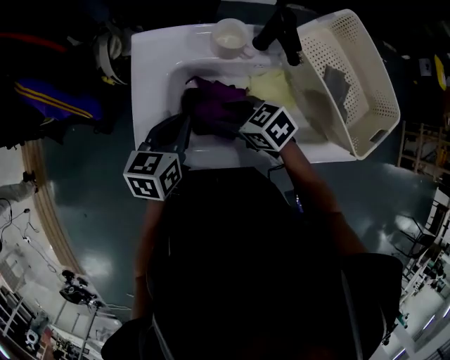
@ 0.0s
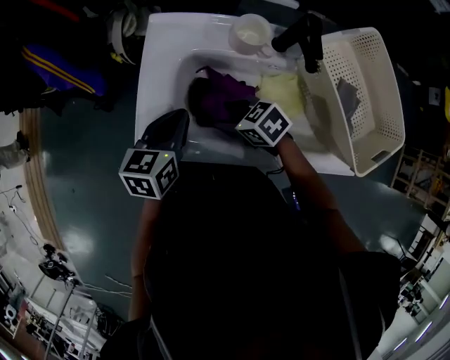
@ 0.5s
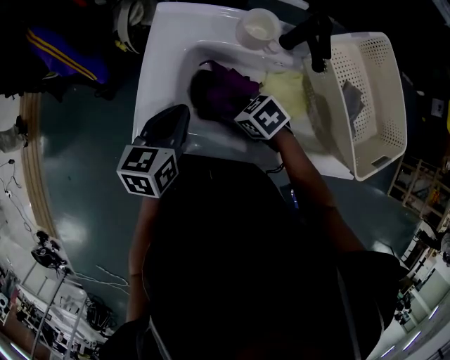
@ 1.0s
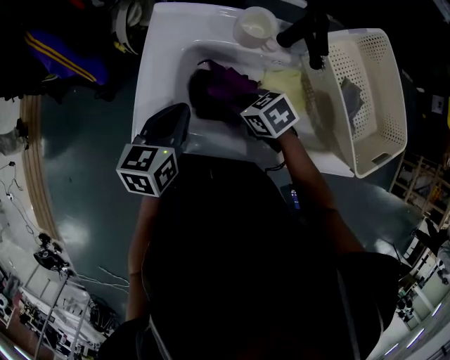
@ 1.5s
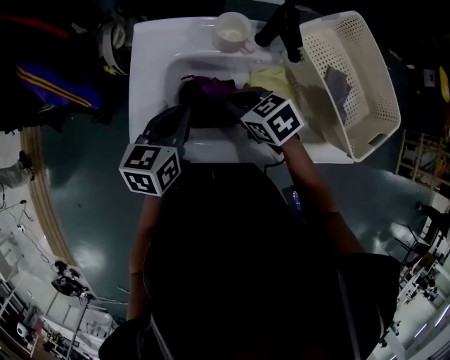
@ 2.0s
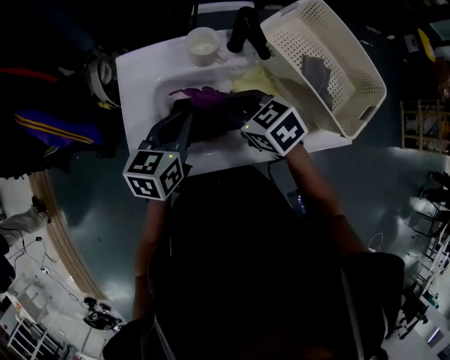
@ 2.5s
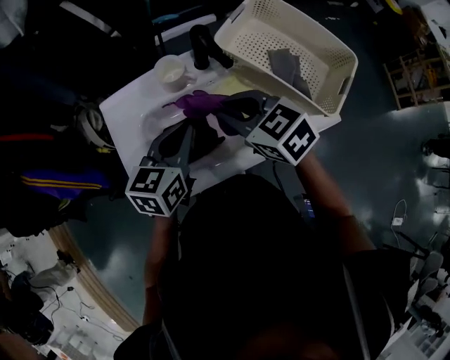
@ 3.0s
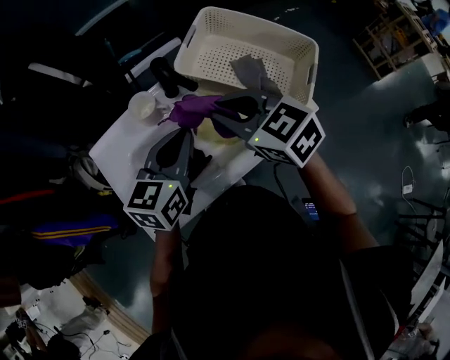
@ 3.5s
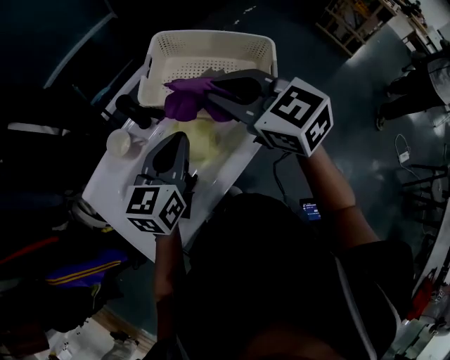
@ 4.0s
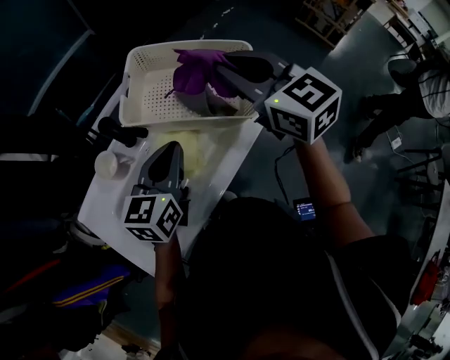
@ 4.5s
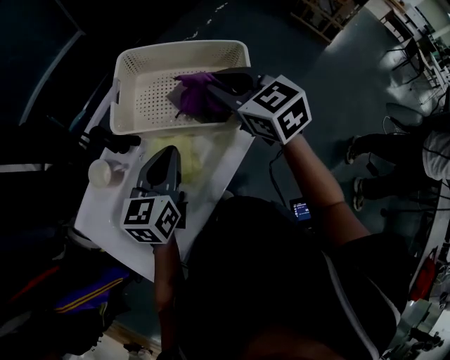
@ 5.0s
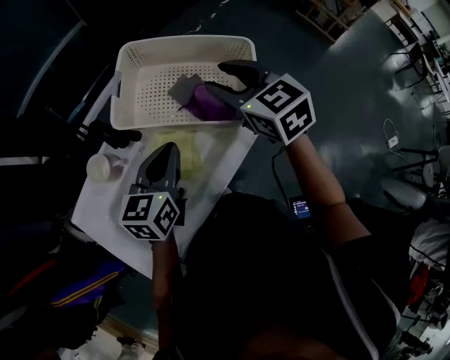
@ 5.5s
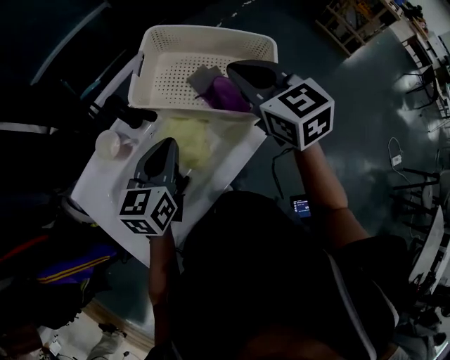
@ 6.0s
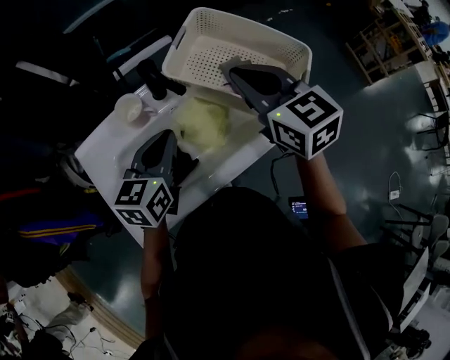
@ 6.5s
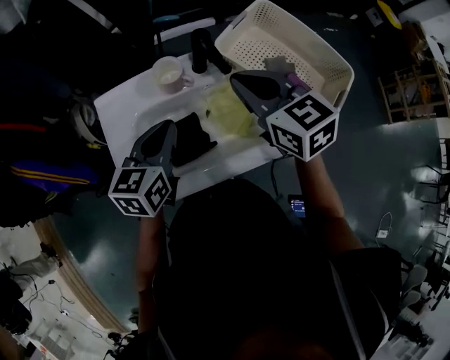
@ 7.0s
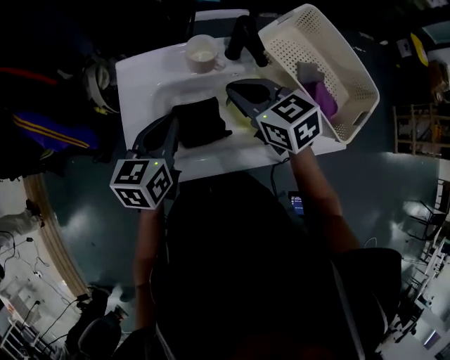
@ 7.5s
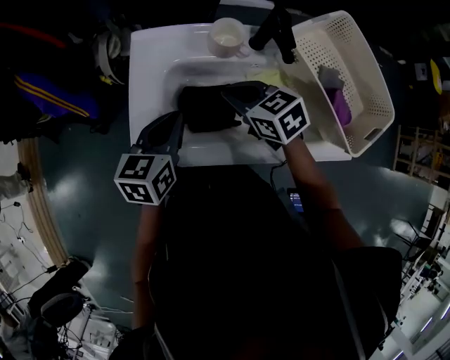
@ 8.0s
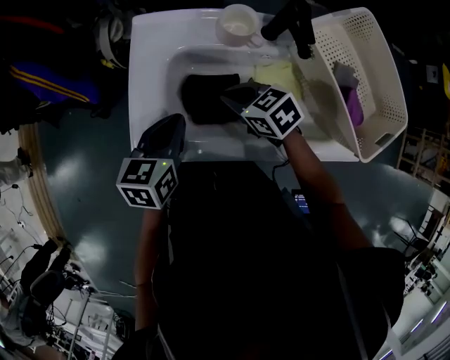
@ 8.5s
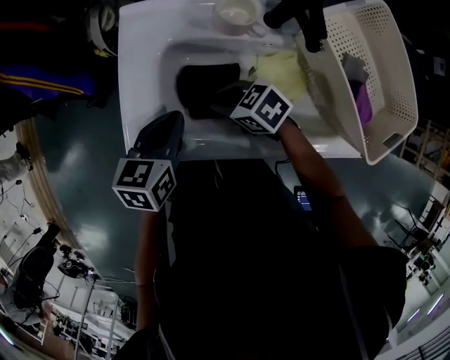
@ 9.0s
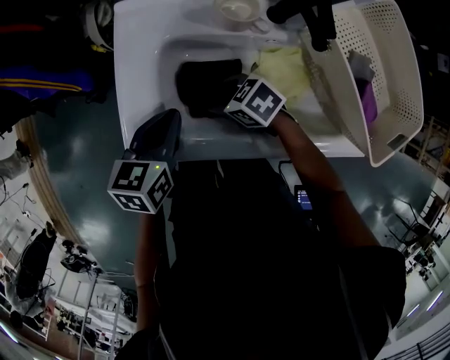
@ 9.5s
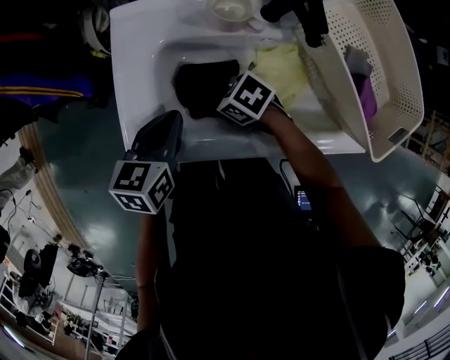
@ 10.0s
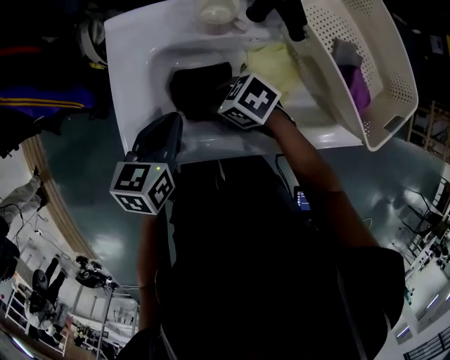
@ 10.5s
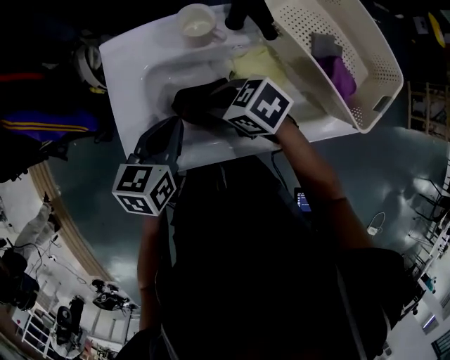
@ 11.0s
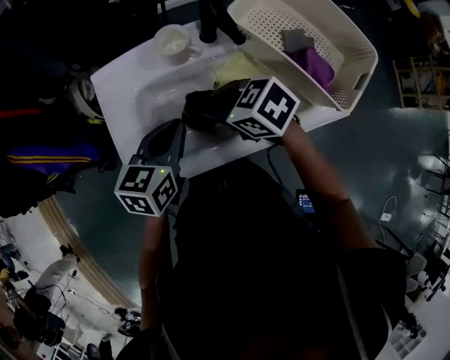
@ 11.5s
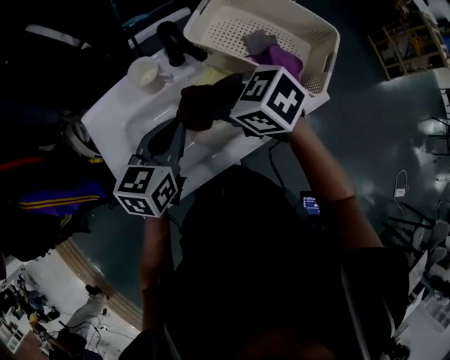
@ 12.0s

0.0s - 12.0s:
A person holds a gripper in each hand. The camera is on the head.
0.0s - 2.0s: The right gripper travels downward and back again, roughly 5 cm each way, and closes up.
2.0s - 4.0s: The left gripper changes place by roughly 25 cm, and rotates approximately 50 degrees; the right gripper moves upward, about 25 cm, and swivels approximately 50 degrees.
4.0s - 6.0s: The right gripper is displaced to the right and forward by about 10 cm, and opens and closes again.
6.0s - 8.0s: The right gripper moves some 35 cm, and rotates approximately 60 degrees. Meanwhile the left gripper moves some 25 cm, and rotates roughly 40 degrees.
8.0s - 10.0s: The right gripper is displaced downward by about 15 cm, rotates approximately 30 degrees, and opens, then closes again. Meanwhile the left gripper moves downward, about 5 cm.
10.0s - 12.0s: The right gripper travels upward by approximately 25 cm, and rotates roughly 40 degrees; the left gripper ends up about 15 cm from where it was, and turns by some 30 degrees.

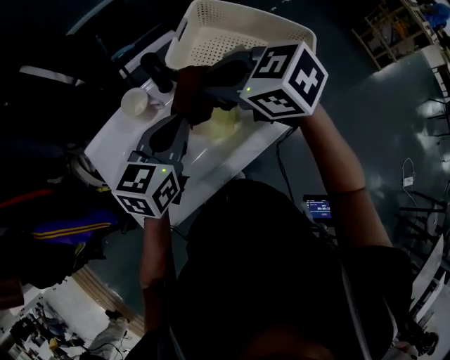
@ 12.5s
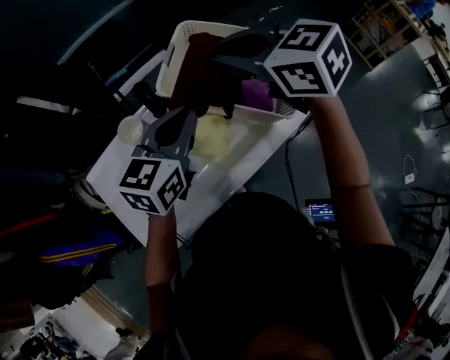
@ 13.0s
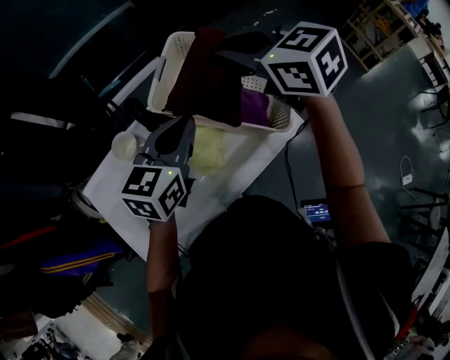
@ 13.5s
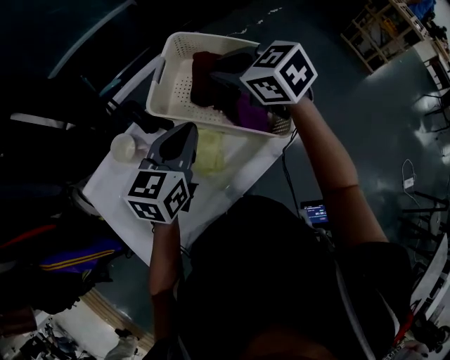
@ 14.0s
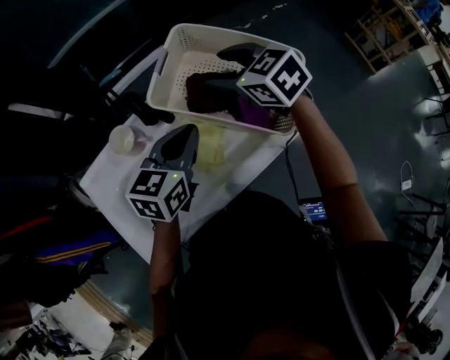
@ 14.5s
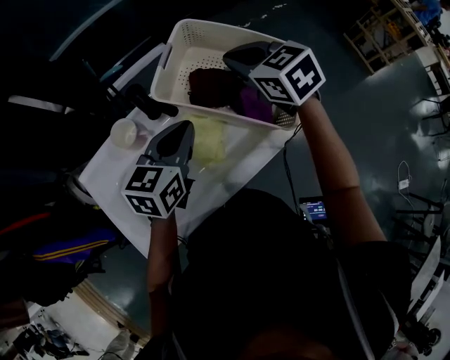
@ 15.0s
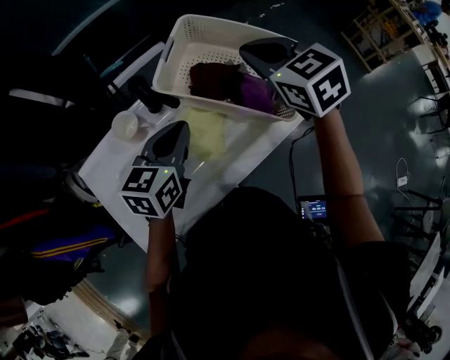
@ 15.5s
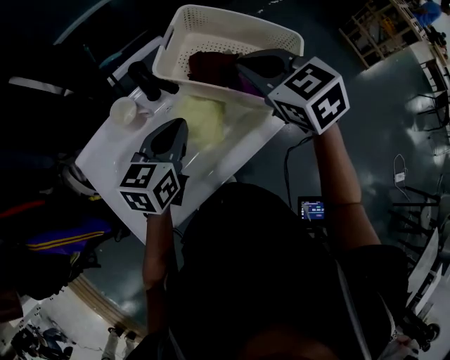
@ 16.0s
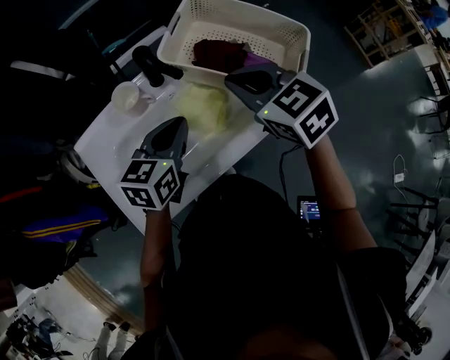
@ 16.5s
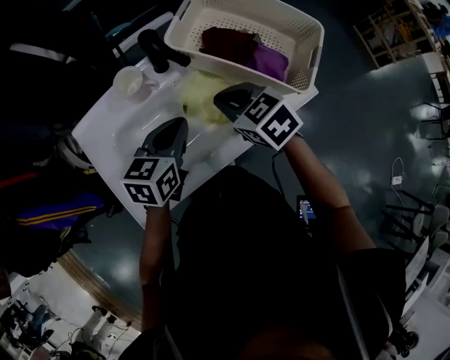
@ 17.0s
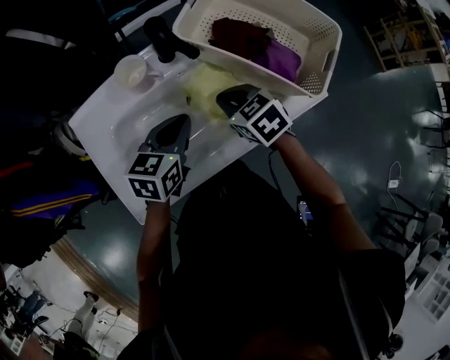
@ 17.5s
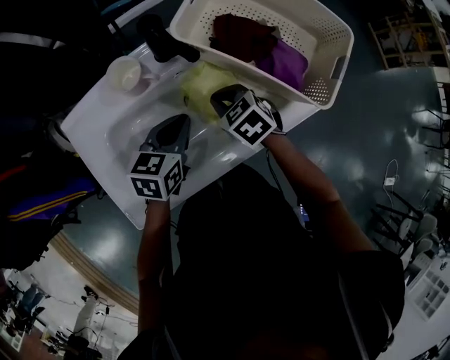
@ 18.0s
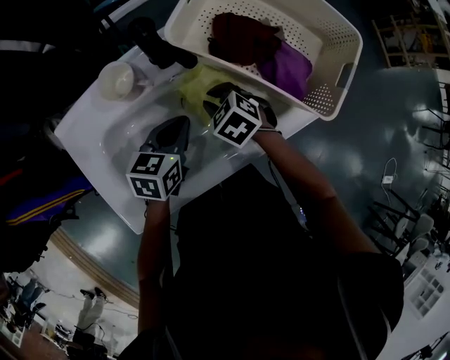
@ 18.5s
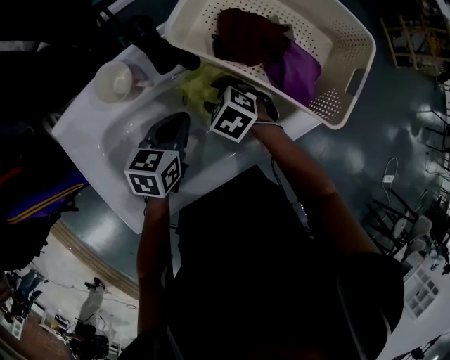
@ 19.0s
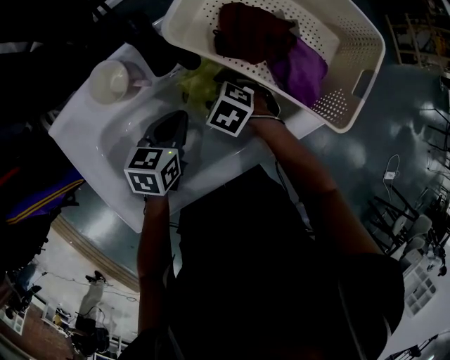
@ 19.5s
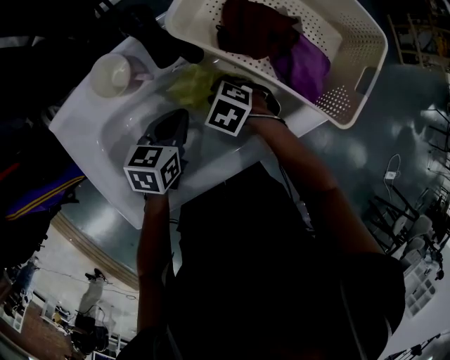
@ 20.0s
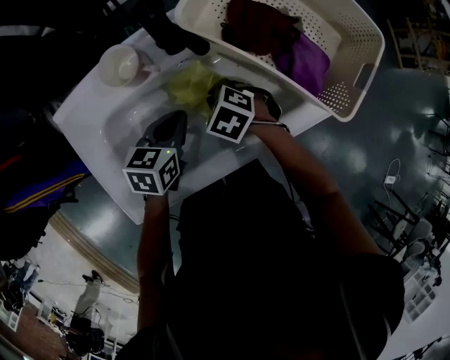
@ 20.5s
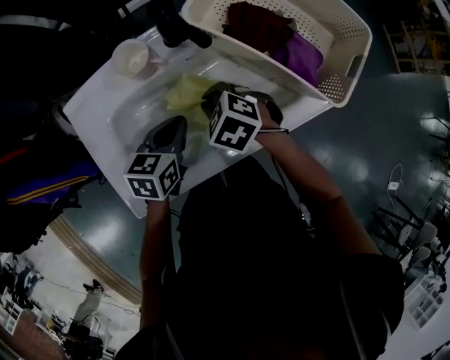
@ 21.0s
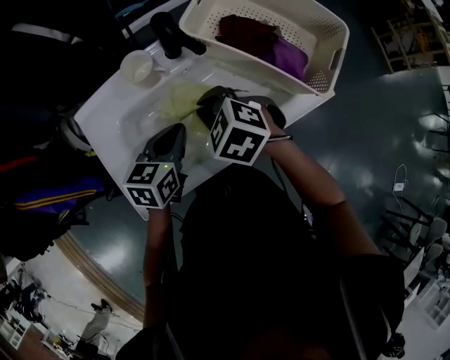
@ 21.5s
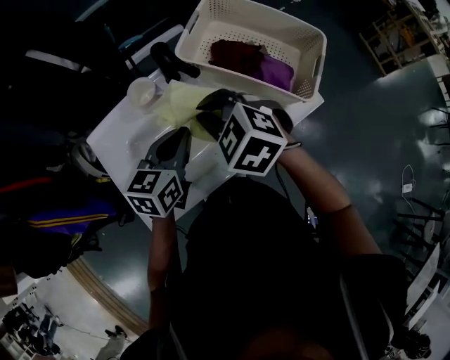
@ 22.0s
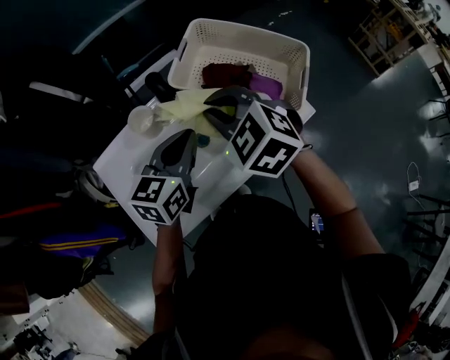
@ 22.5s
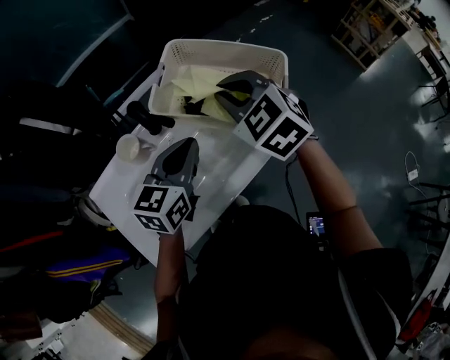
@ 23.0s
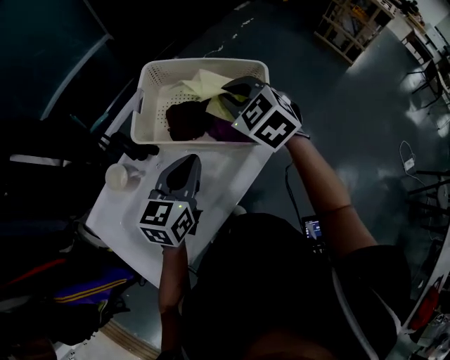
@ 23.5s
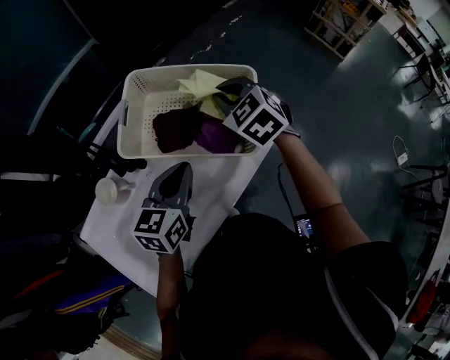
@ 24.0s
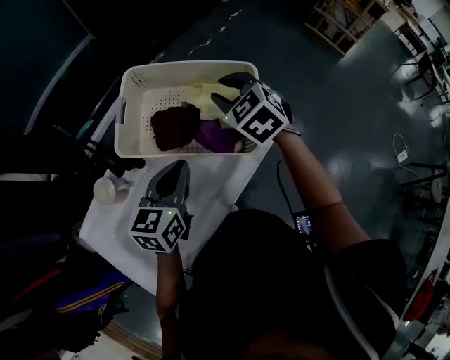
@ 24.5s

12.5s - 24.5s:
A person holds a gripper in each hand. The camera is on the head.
12.5s - 14.5s: The right gripper shifts some 15 cm forward and to the right, and opens. Meanwhile the left gripper travels to the right and forward by about 10 cm.
14.5s - 16.5s: The left gripper shifts roughly 10 cm backward and to the left. The right gripper is displaced backward by approximately 15 cm, and closes its fingers.
16.5s - 18.5s: The left gripper heads downward, covering approximately 15 cm. Meanwhile the right gripper goes some 25 cm downward, and turns by roughly 30 degrees.
18.5s - 20.5s: The right gripper opens, then closes once more.
20.5s - 22.5s: Both grippers move upward, approximately 25 cm. The right gripper angles its fingers upward, by approximately 30 degrees. Meanwhile the left gripper rotates some 30 degrees.
22.5s - 24.5s: The left gripper heads to the right and forward, covering roughly 15 cm. Meanwhile the right gripper shifts approximately 25 cm to the right and forward, swivels some 30 degrees, and opens up.

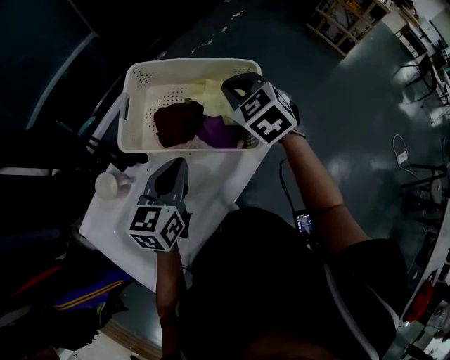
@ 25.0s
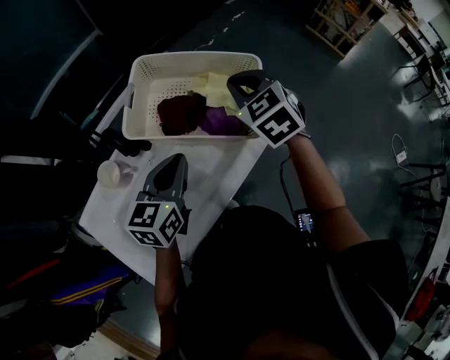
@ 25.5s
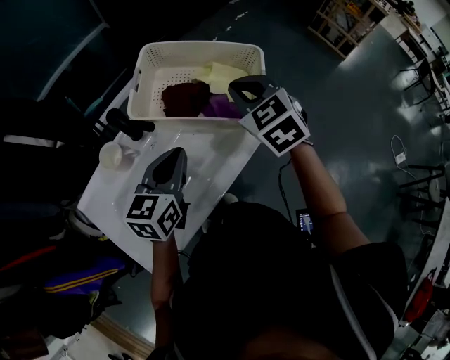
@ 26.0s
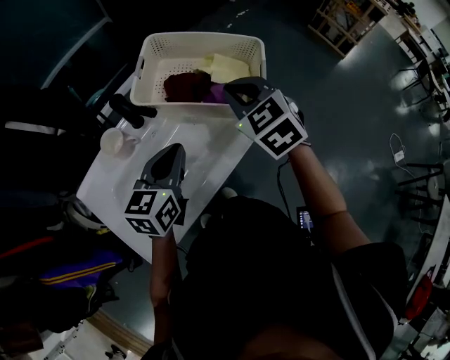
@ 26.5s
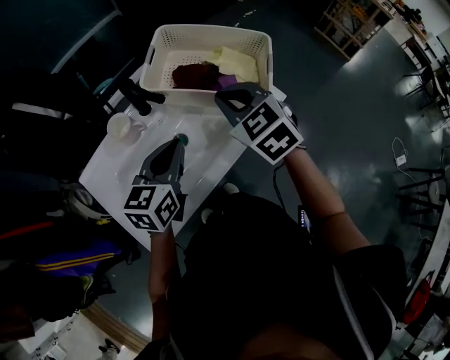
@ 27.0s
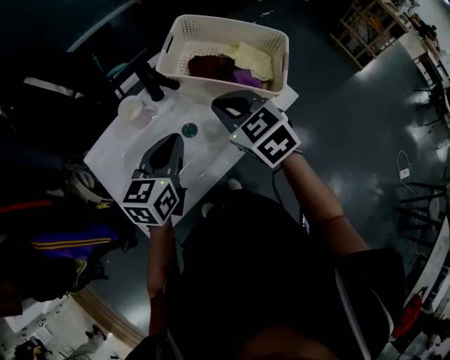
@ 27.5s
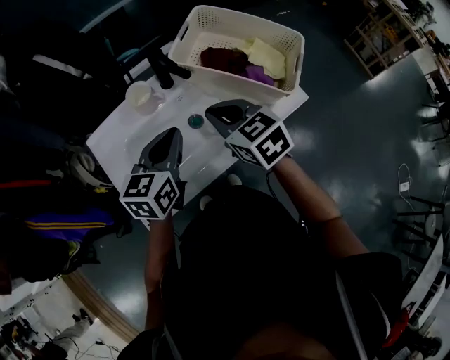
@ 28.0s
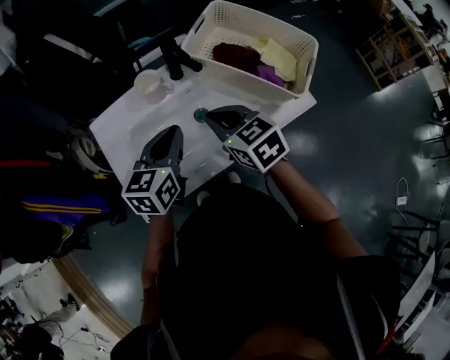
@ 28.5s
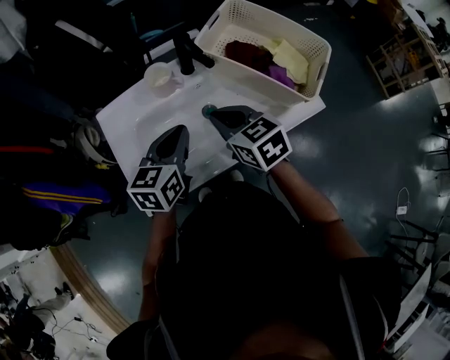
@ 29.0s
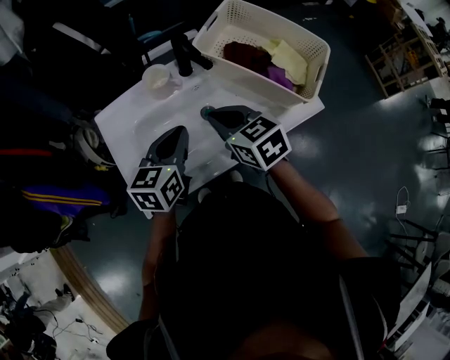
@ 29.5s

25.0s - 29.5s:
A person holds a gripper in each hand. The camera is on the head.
25.0s - 27.0s: The left gripper heads backward and to the left, covering approximately 15 cm; the right gripper shifts about 20 cm backward and to the left.
27.0s - 29.5s: The left gripper goes roughly 10 cm to the left; the right gripper is displaced to the left and downward by approximately 15 cm, and rotates about 30 degrees.
